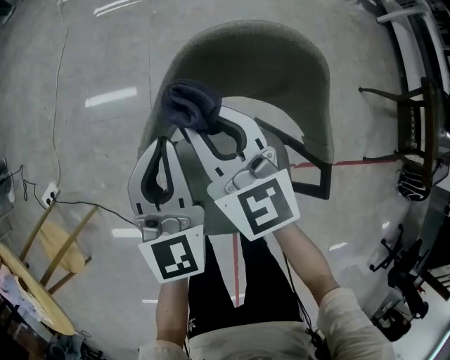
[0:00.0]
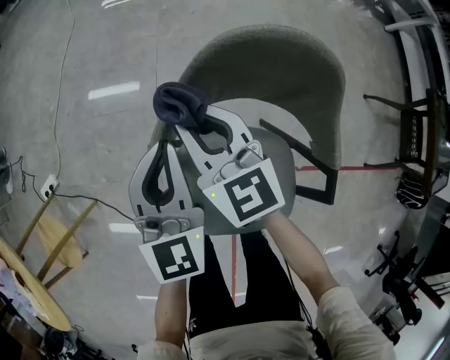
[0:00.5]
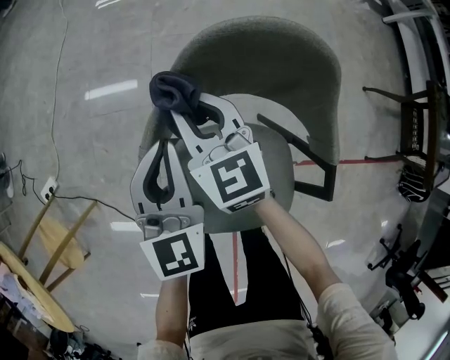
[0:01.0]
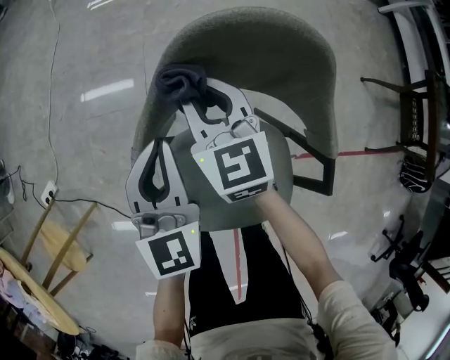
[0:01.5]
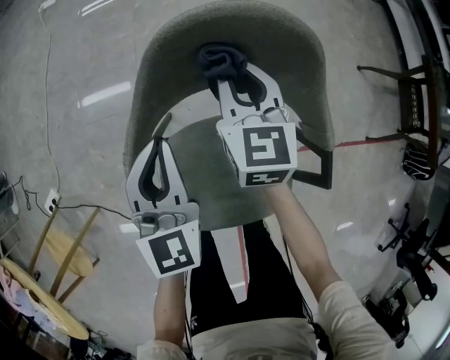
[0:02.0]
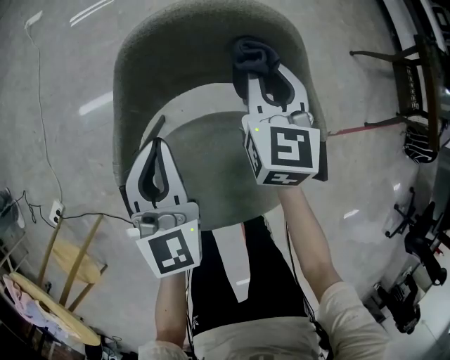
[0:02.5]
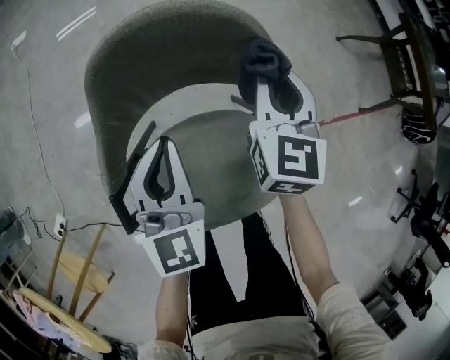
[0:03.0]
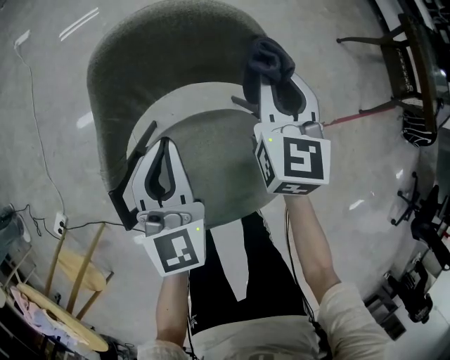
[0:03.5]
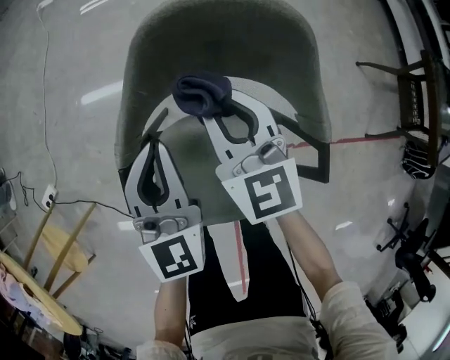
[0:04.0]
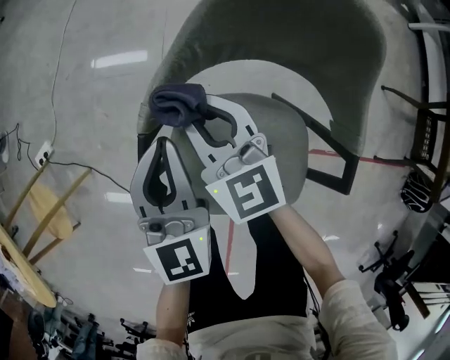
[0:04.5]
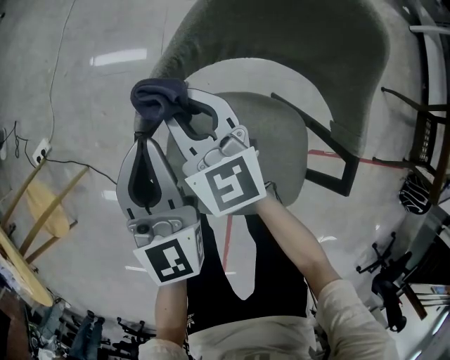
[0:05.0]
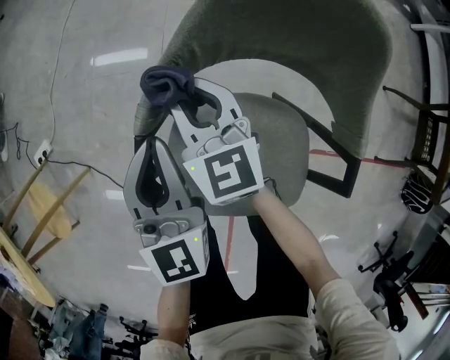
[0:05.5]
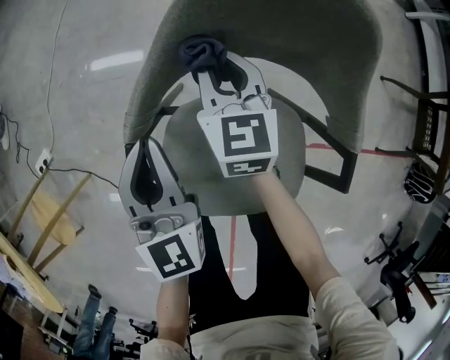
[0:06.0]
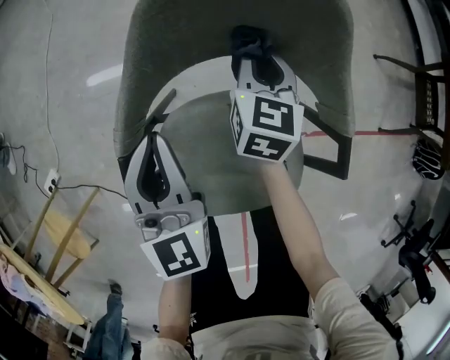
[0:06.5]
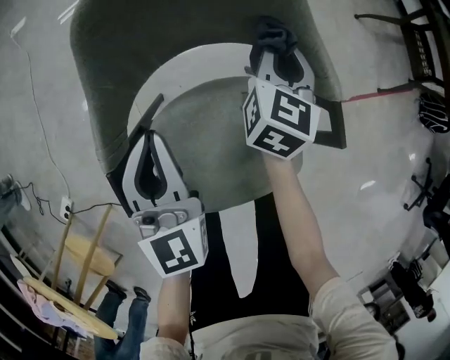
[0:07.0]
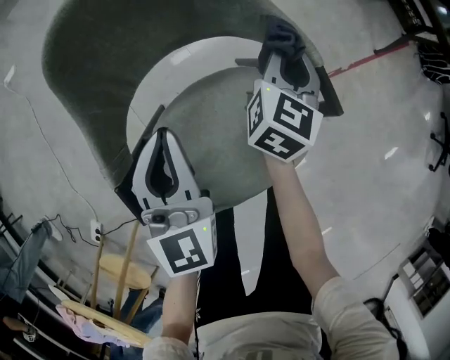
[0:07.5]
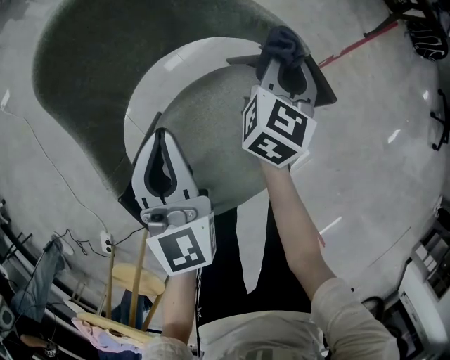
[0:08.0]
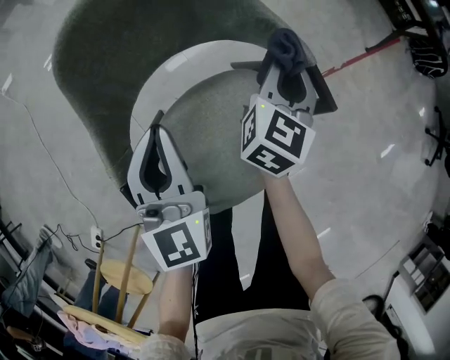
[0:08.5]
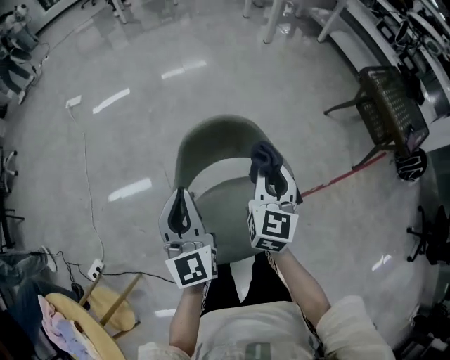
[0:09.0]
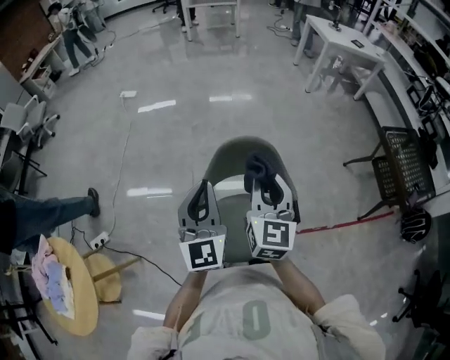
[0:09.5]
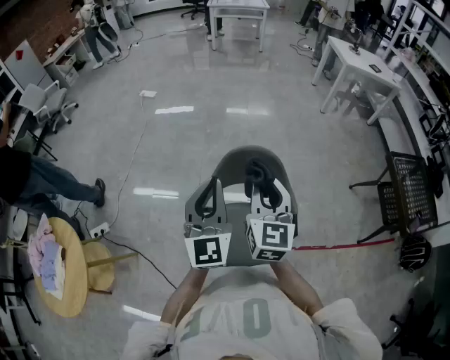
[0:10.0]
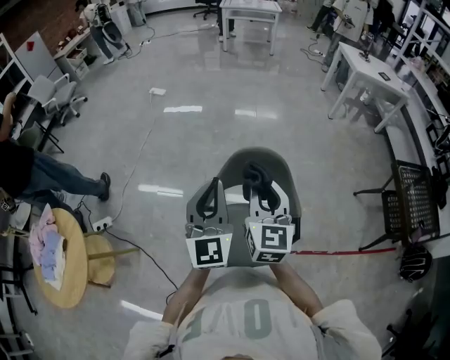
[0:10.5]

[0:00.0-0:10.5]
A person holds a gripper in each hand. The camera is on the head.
0:00.0 to 0:02.0: The right gripper heads to the right, downward and forward, covering approximately 15 cm, and changes its angle by roughly 30 degrees.
0:04.0 to 0:06.5: The right gripper goes about 10 cm downward, and changes its angle by some 30 degrees.
0:06.5 to 0:08.5: The right gripper ends up approximately 20 cm from where it was, and turns by approximately 40 degrees. Meanwhile the left gripper changes place by about 10 cm, and rotates some 30 degrees.
0:08.5 to 0:10.5: The two grippers go approximately 40 cm upward. The left gripper swivels some 40 degrees, while the right gripper changes its angle by about 60 degrees.

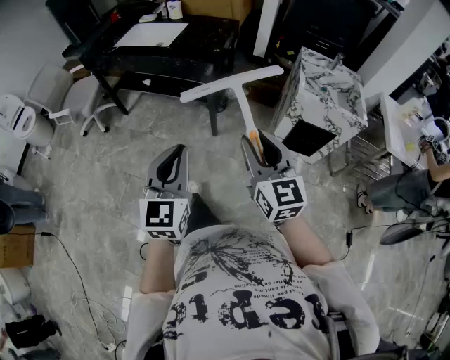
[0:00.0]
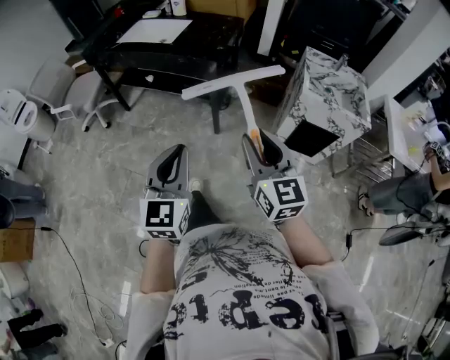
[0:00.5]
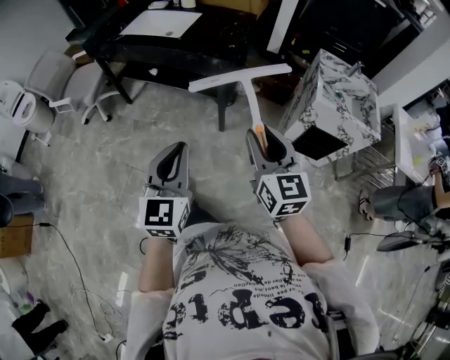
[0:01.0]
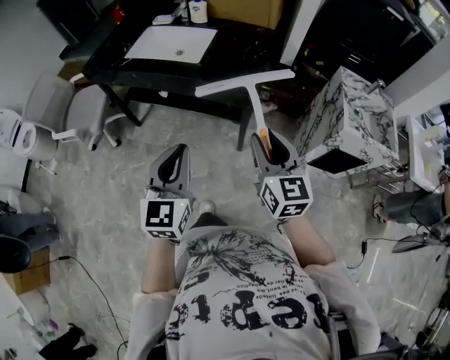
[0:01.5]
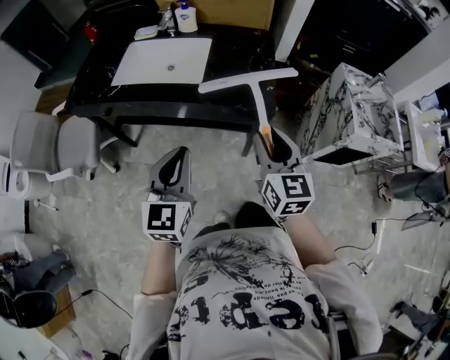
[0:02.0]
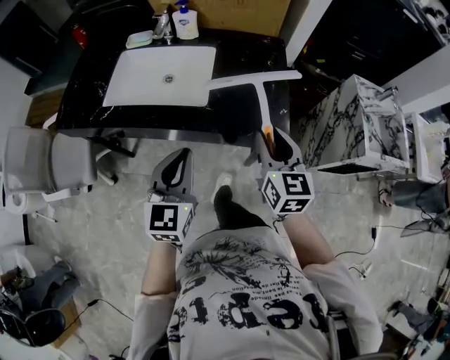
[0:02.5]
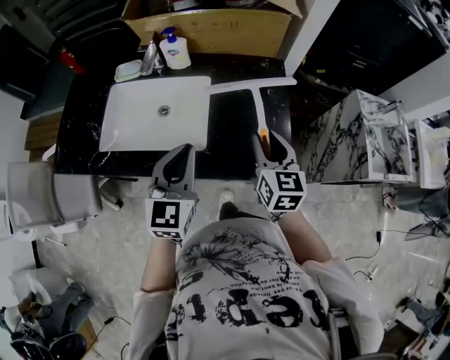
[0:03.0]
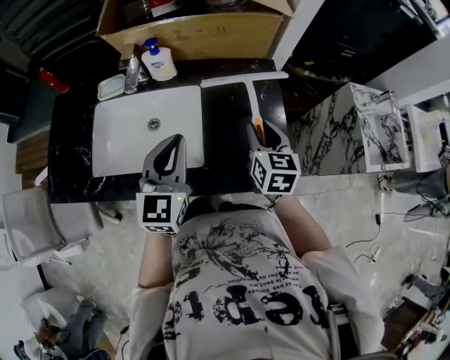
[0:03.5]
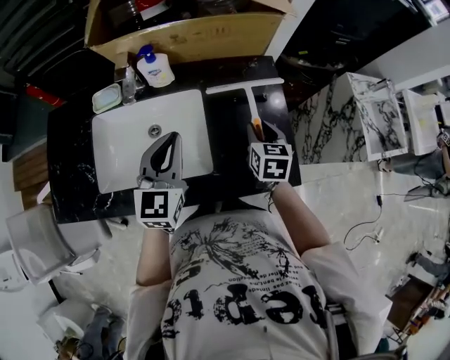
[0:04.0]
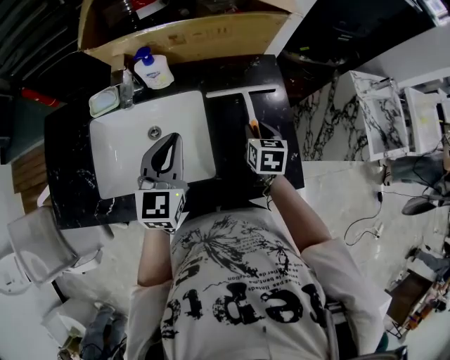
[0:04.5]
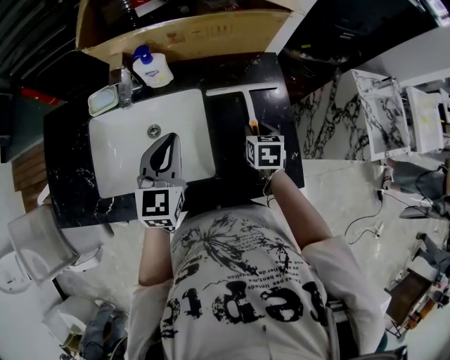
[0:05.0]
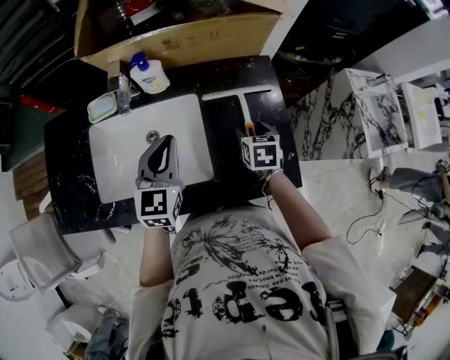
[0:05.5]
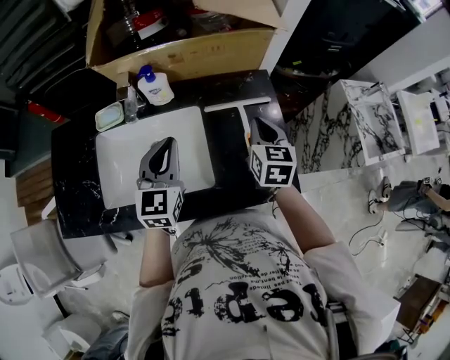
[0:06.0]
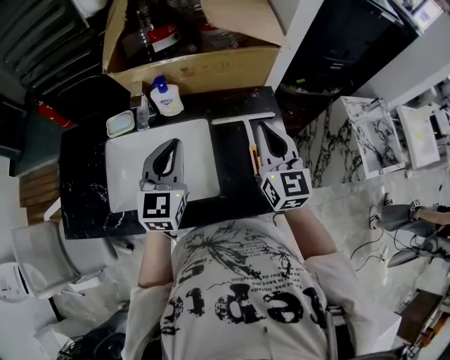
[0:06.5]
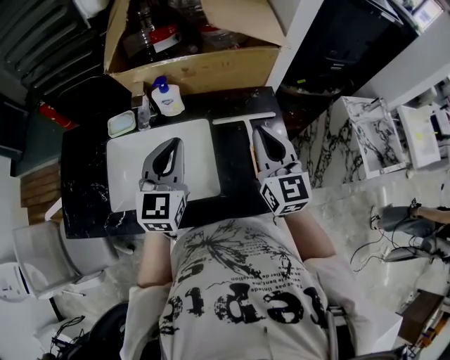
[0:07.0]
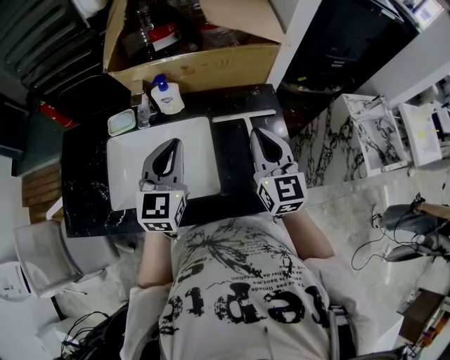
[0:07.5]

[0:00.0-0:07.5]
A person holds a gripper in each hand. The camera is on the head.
0:00.0 to 0:02.0: The two grippers travel together, forward and to the left, about 50 cm.
0:02.0 to 0:04.0: Both grippers move forward, approximately 40 cm. The right gripper rotates some 30 degrees.
0:04.0 to 0:05.5: The right gripper travels downward by roughly 5 cm, and opens.
0:05.5 to 0:07.5: The right gripper goes roughly 20 cm upward, tips its fingers upward by approximately 50 degrees, and closes its fingers. The left gripper heads upward, covering some 10 cm.

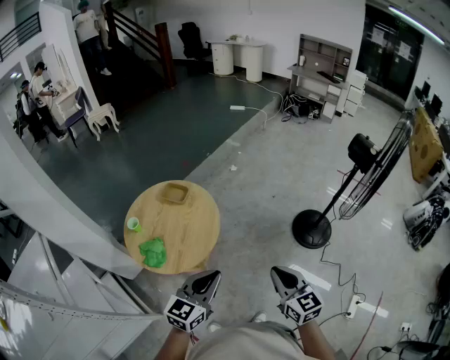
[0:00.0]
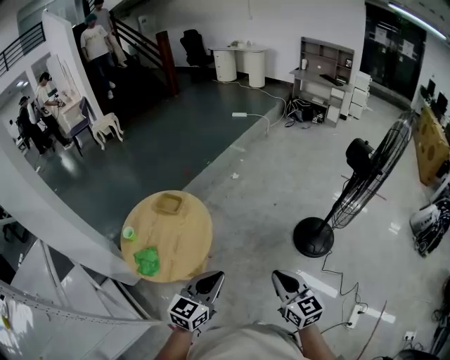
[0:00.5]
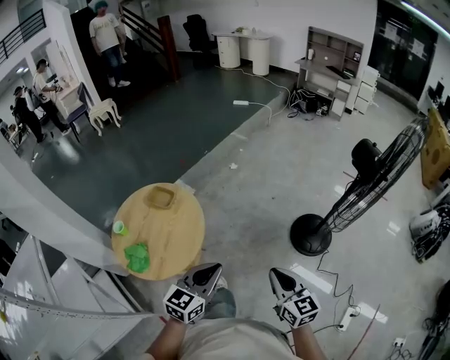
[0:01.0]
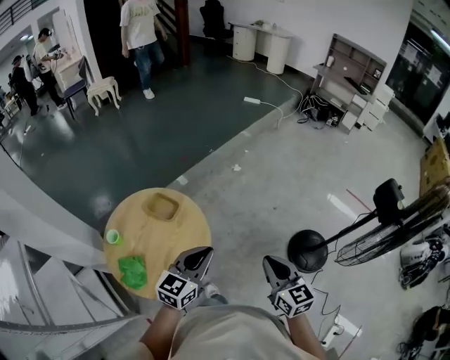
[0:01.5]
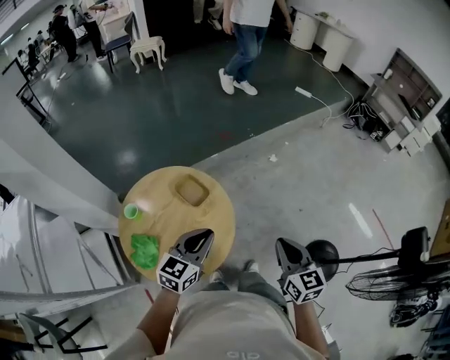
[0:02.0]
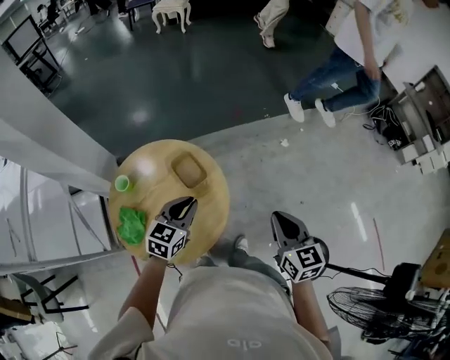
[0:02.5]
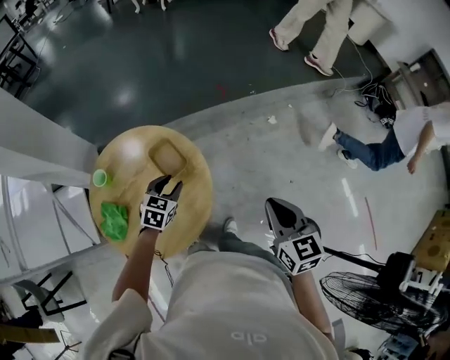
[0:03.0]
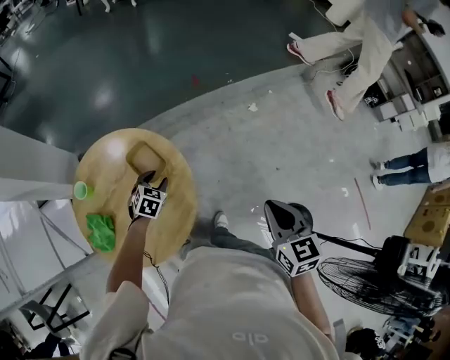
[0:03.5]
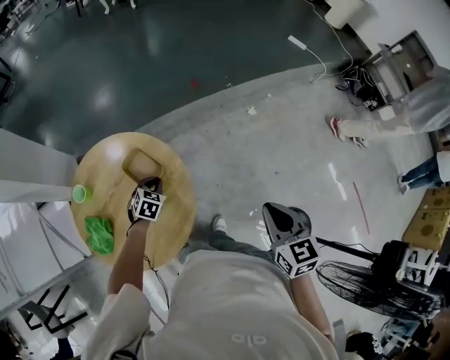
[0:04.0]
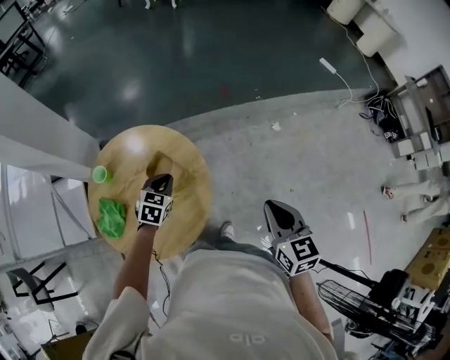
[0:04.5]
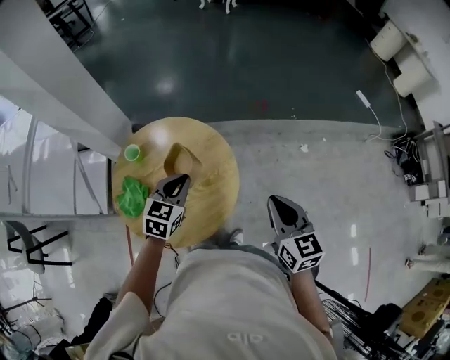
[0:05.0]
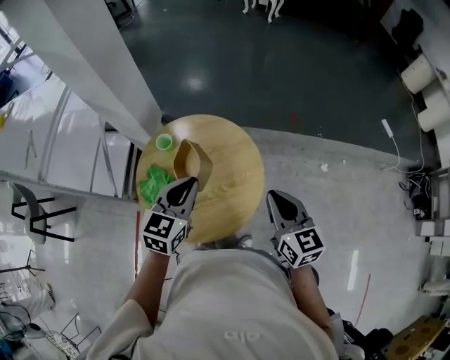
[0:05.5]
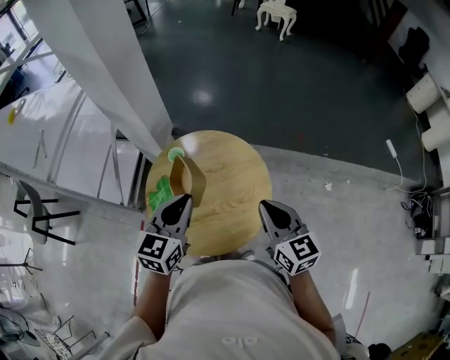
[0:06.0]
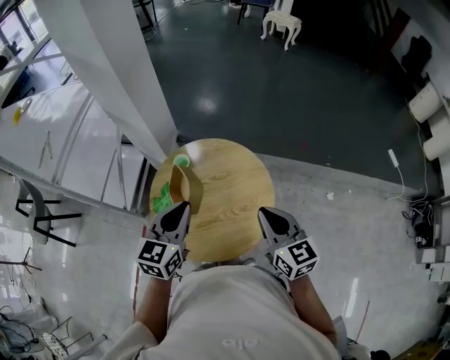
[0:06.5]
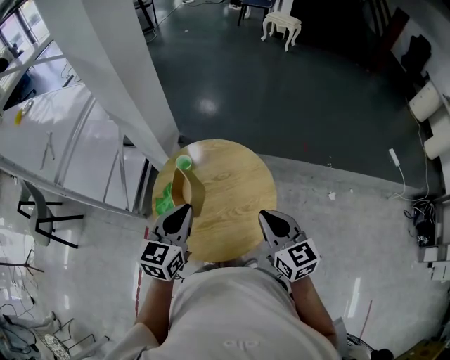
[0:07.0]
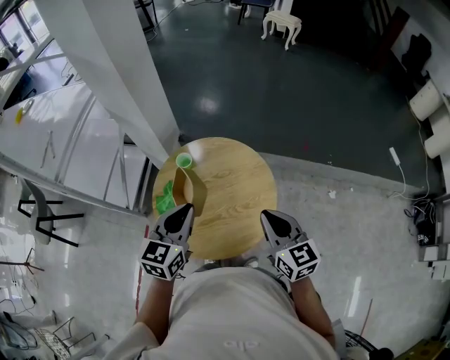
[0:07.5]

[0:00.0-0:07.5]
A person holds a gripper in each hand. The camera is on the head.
0:00.0 to 0:02.0: The pair of grippers is taken forward, roughly 40 cm. The left gripper changes its angle by roughly 20 degrees.
0:02.0 to 0:04.0: The left gripper goes some 40 cm downward and forward, tilts its fingers roughly 40 degrees downward, and opens, then closes once more; the right gripper is displaced forward and to the right by approximately 20 cm.
0:04.0 to 0:05.5: The left gripper heads upward, covering about 30 cm, and tips its fingers upward by about 30 degrees, while the right gripper ends up roughly 25 cm from where it was, and swivels roughly 30 degrees.
0:05.5 to 0:07.5: The two grippers go some 10 cm to the left.

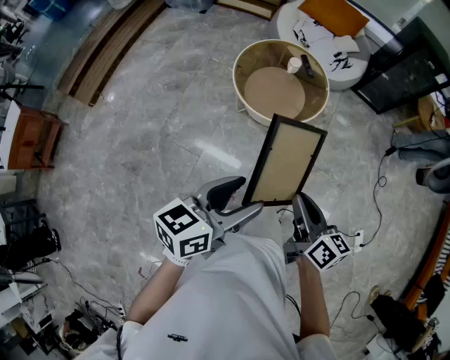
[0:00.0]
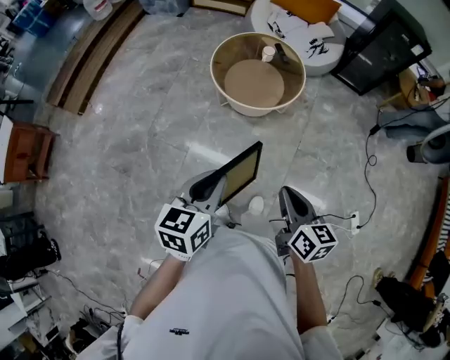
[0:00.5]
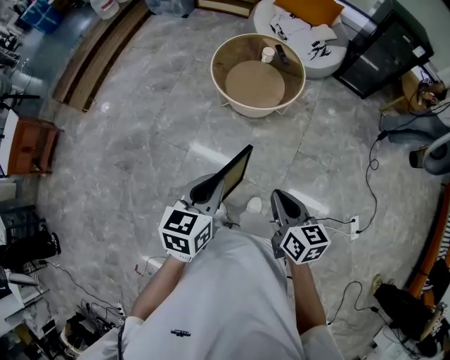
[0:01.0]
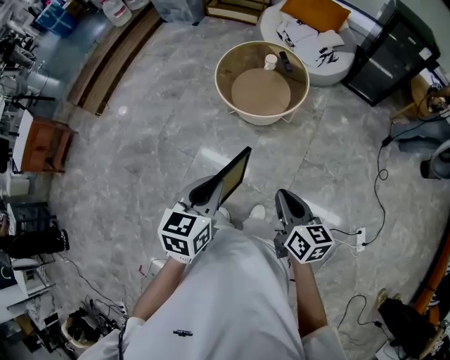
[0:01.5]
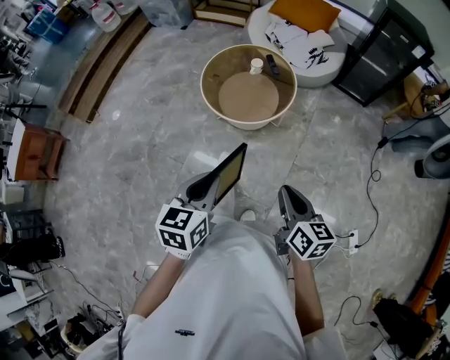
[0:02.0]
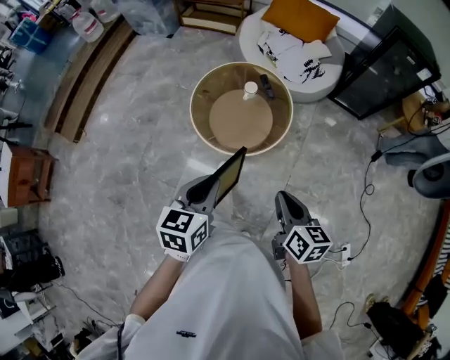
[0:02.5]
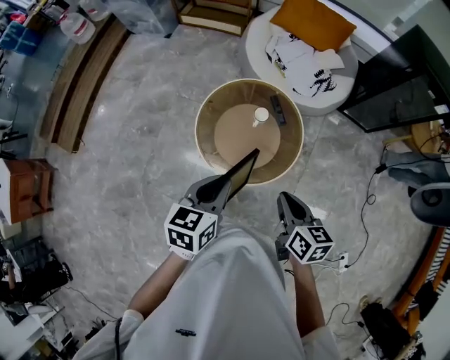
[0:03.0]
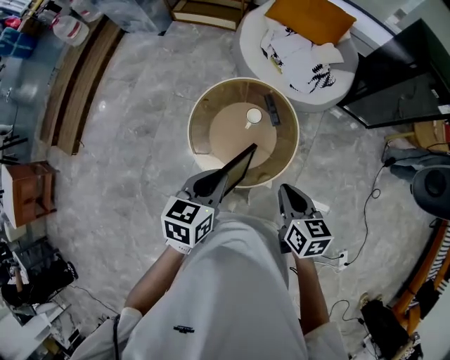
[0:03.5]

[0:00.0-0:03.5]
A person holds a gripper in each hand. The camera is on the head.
0:00.0 to 0:02.0: The grippers both shift to the right by roughly 15 cm. The left gripper turns by roughly 40 degrees, and closes its fingers.
0:02.0 to 0:03.5: The pair of grippers is taken forward, approximately 50 cm.
